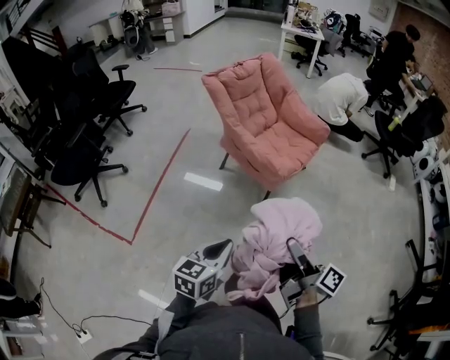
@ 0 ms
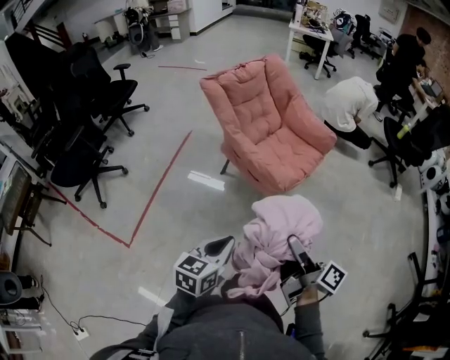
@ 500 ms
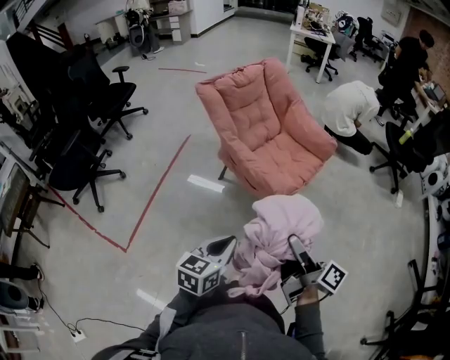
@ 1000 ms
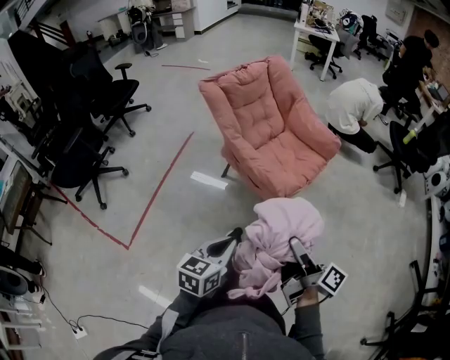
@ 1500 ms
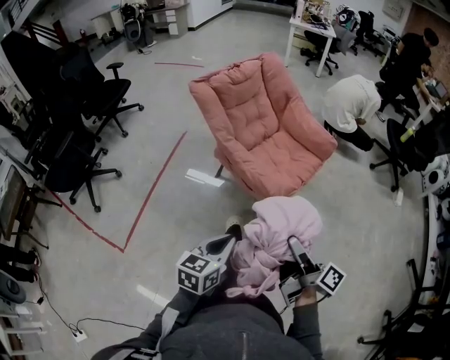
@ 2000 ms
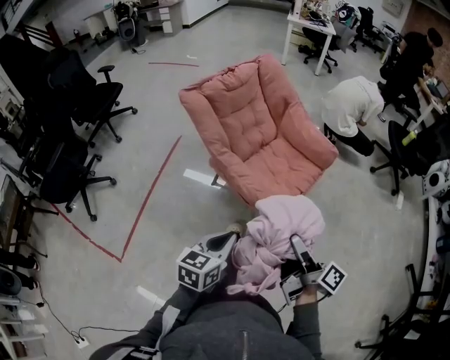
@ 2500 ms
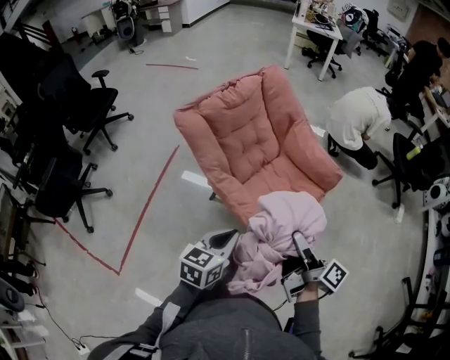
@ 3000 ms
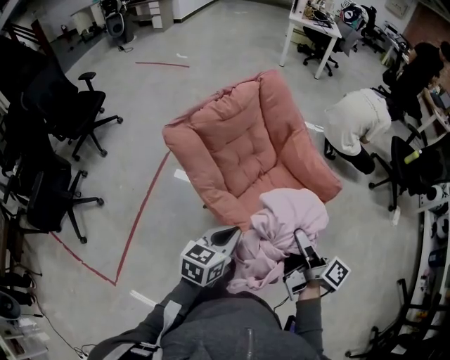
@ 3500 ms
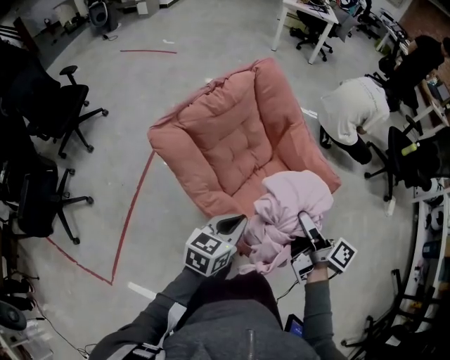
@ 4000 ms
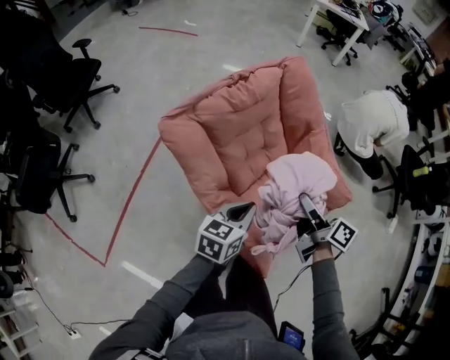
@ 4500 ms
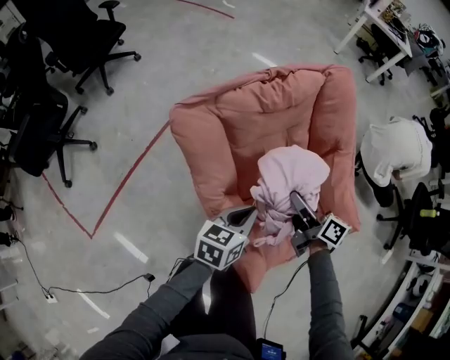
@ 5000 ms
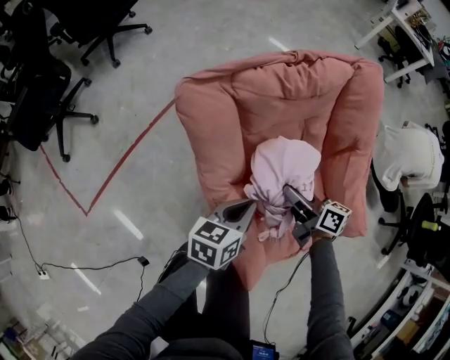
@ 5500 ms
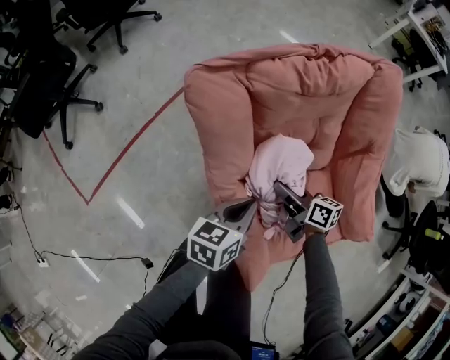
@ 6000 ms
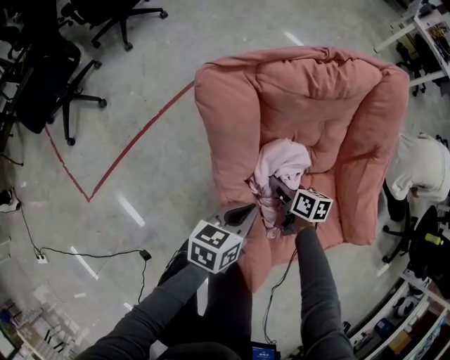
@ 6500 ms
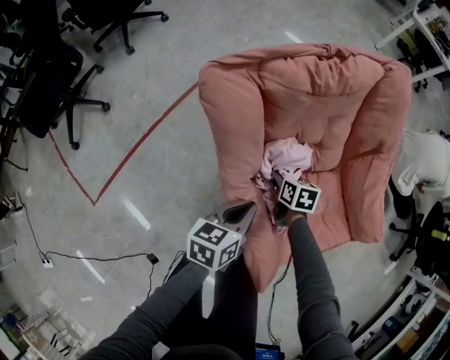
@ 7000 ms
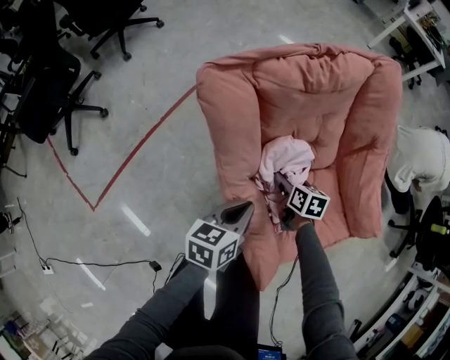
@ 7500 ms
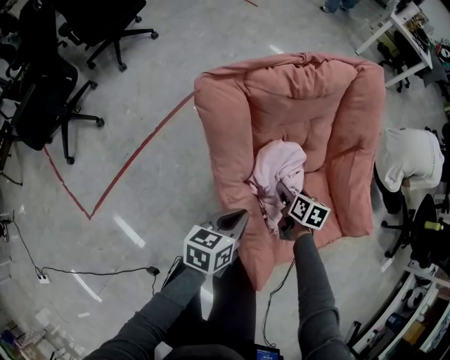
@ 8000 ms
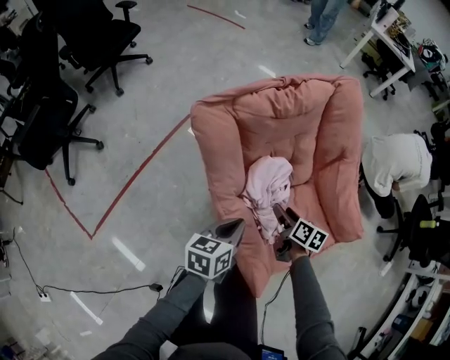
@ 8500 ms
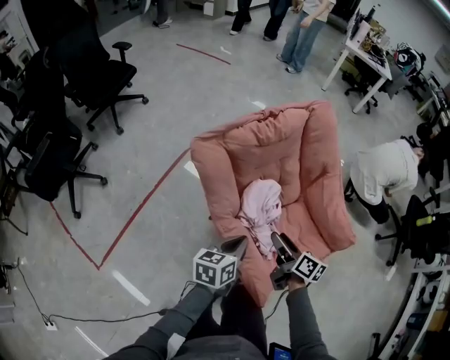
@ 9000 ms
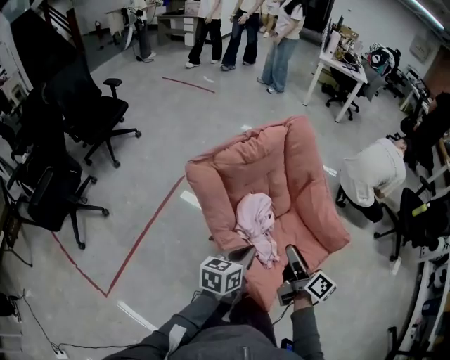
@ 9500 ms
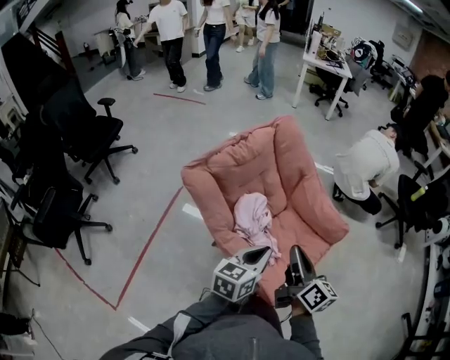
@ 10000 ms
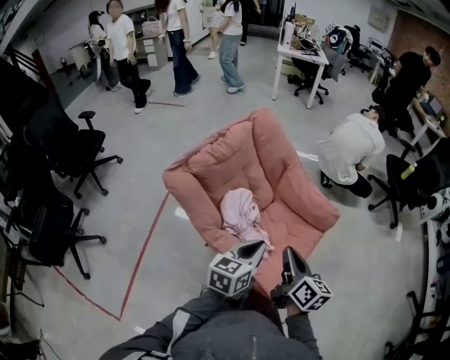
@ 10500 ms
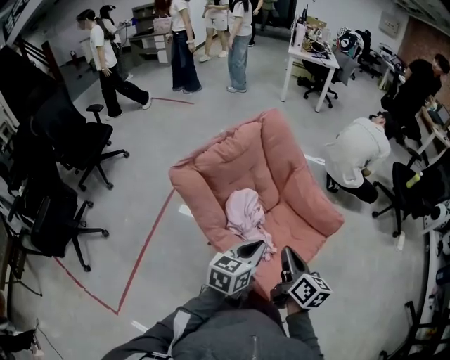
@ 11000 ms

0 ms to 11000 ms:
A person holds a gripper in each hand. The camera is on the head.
0 ms to 2000 ms: Both grippers travel together forward, approximately 20 cm.
2000 ms to 3500 ms: Both grippers travel together forward, about 35 cm.
3500 ms to 5500 ms: The right gripper moves roughly 35 cm, and swivels some 60 degrees. The left gripper moves some 25 cm, and rotates roughly 30 degrees.
5500 ms to 7500 ms: The right gripper heads downward, covering approximately 15 cm, and changes its angle by some 40 degrees. Meanwhile the left gripper moves approximately 5 cm.
7500 ms to 9000 ms: The left gripper moves upward, approximately 10 cm. Meanwhile the right gripper shifts approximately 20 cm upward and backward, and turns by roughly 40 degrees.
9000 ms to 11000 ms: The right gripper is displaced upward, backward and to the right by roughly 20 cm, turns by about 30 degrees, and closes; the left gripper is displaced to the right and upward by roughly 15 cm, and swivels roughly 30 degrees.

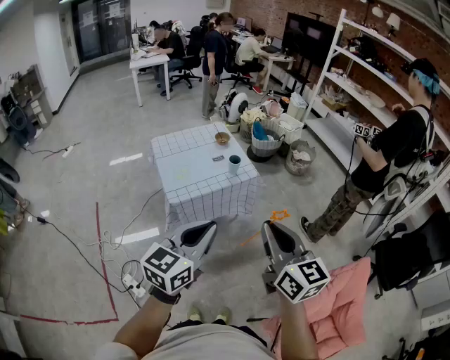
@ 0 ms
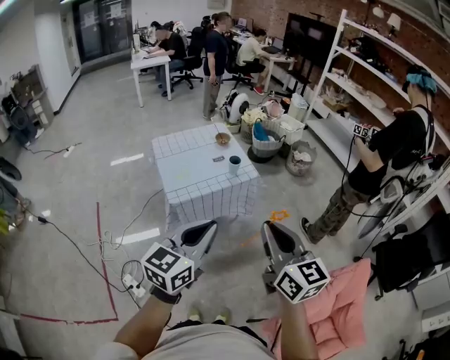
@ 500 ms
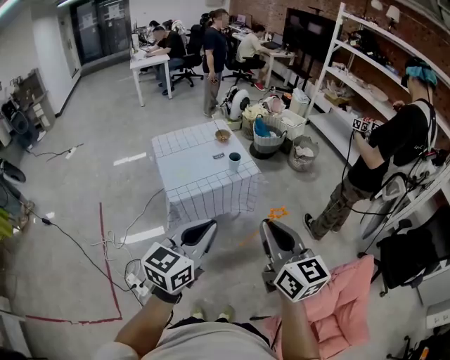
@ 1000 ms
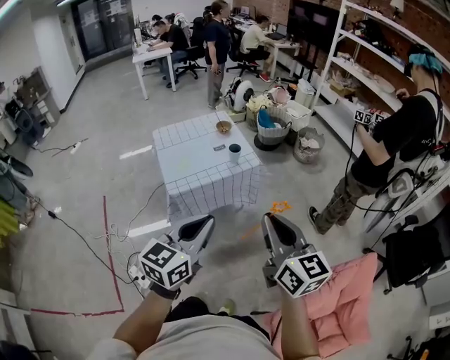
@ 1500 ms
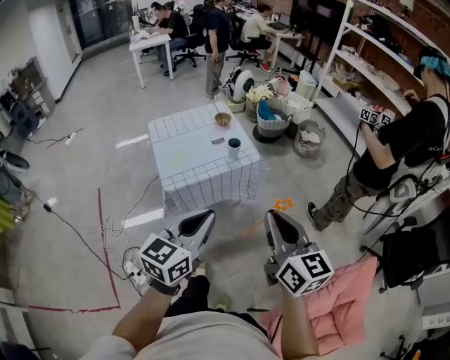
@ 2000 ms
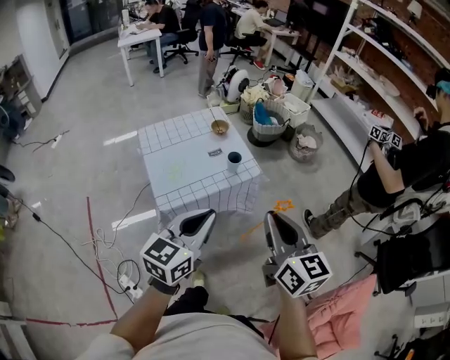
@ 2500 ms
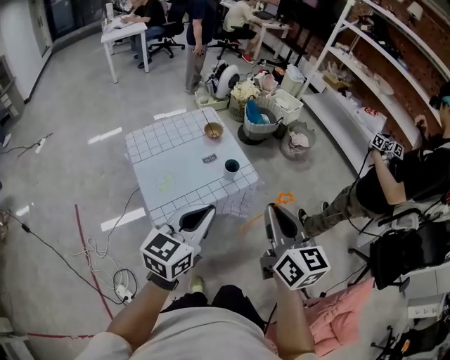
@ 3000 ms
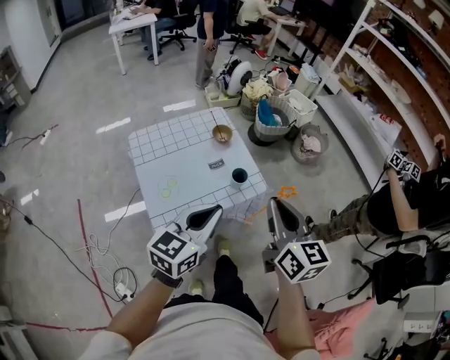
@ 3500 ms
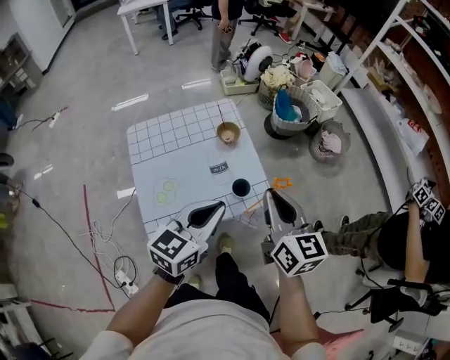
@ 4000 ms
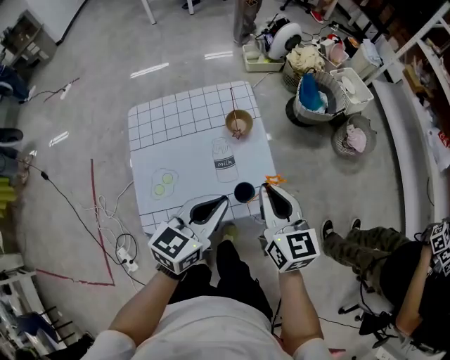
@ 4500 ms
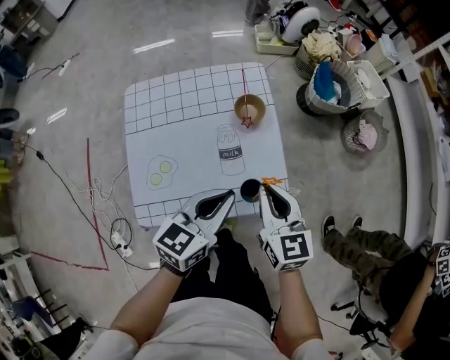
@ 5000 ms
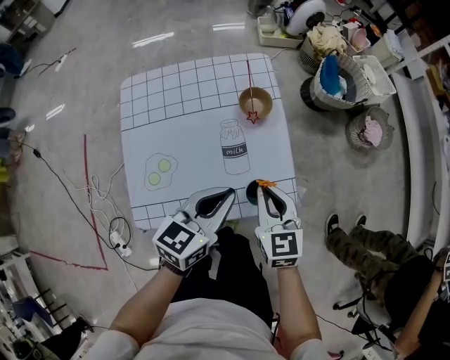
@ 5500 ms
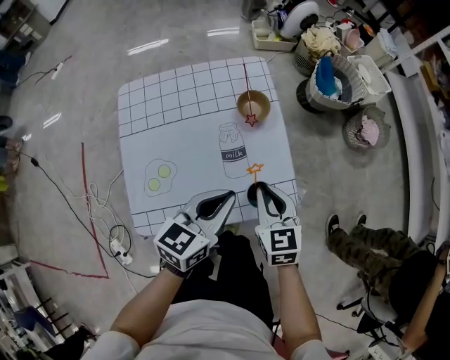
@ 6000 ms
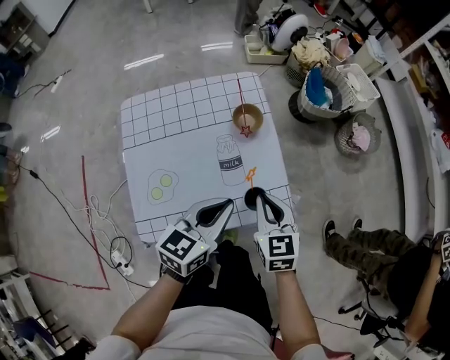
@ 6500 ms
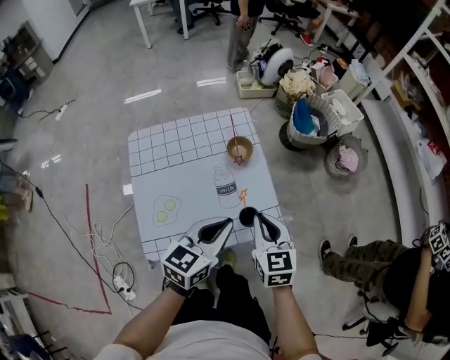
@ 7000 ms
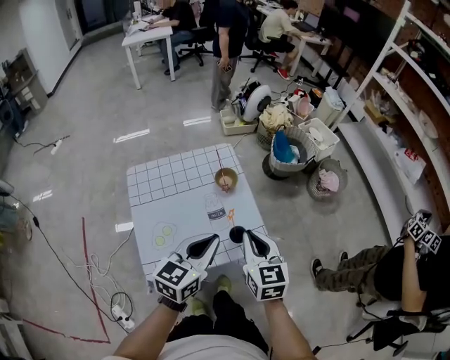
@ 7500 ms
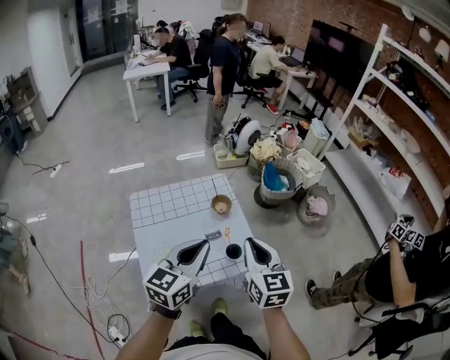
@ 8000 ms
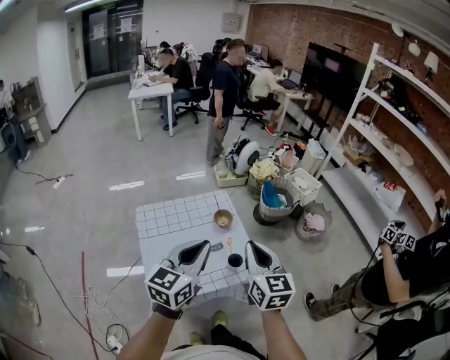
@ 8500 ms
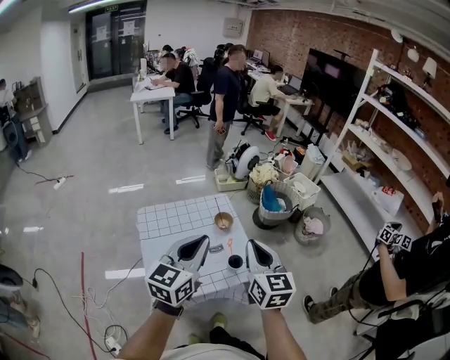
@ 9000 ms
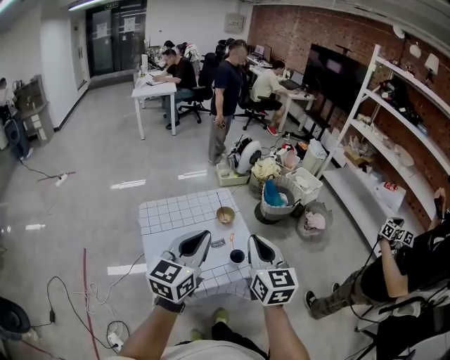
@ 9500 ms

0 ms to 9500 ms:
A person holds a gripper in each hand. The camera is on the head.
0 ms to 2000 ms: The two grippers go about 5 cm forward.
2000 ms to 4000 ms: Both grippers are carried forward, about 50 cm.
4000 ms to 5500 ms: Both grippers travel together downward and forward, some 25 cm. The right gripper changes its angle by some 30 degrees.
5500 ms to 7500 ms: Both grippers move upward, approximately 15 cm.
7500 ms to 9500 ms: The right gripper shifts roughly 20 cm upward and backward, while the left gripper travels upward by some 15 cm.

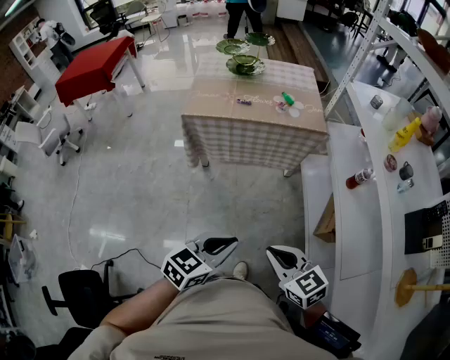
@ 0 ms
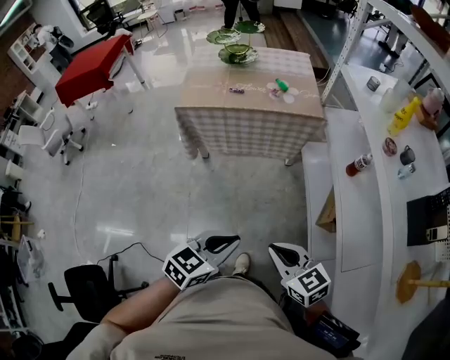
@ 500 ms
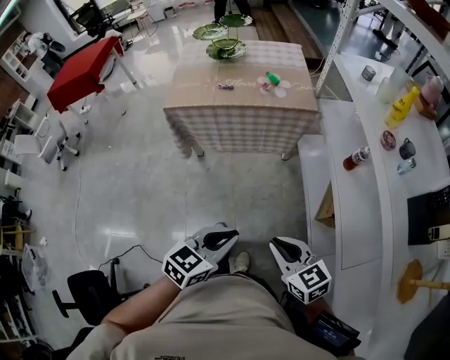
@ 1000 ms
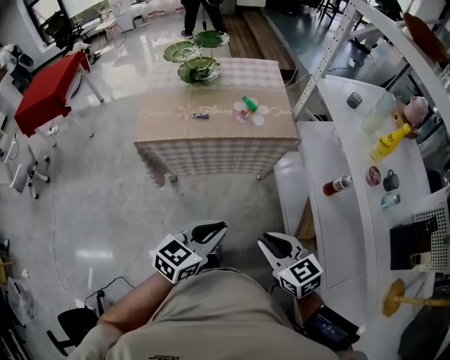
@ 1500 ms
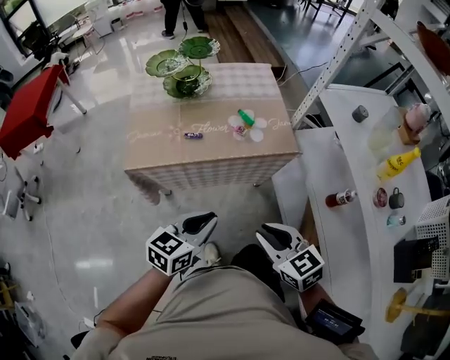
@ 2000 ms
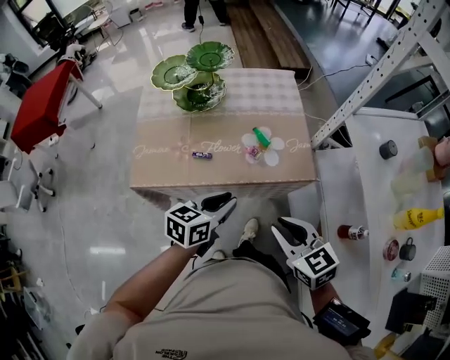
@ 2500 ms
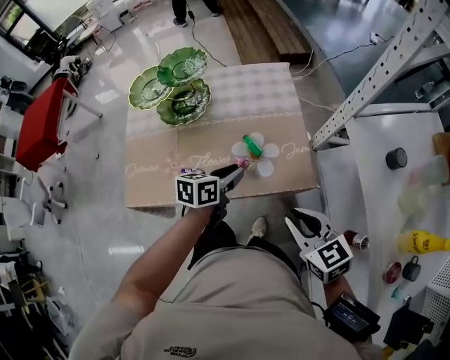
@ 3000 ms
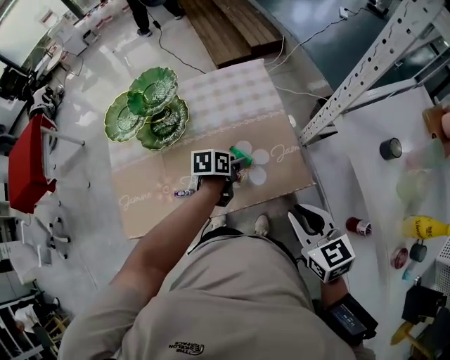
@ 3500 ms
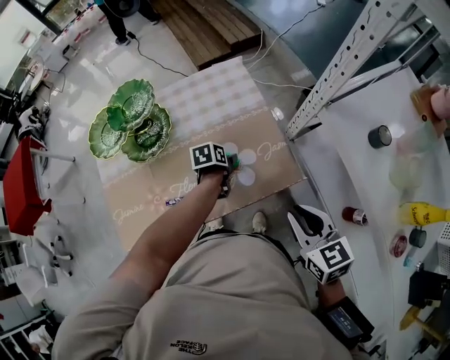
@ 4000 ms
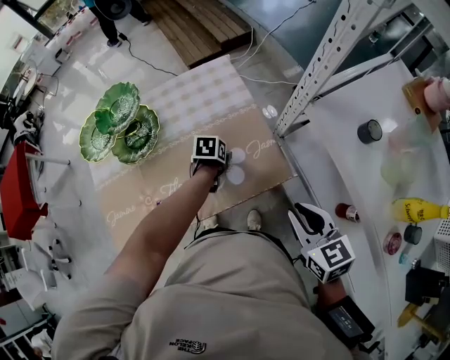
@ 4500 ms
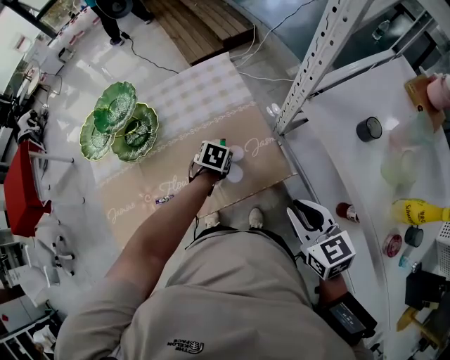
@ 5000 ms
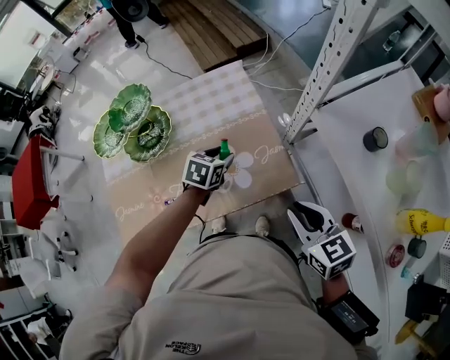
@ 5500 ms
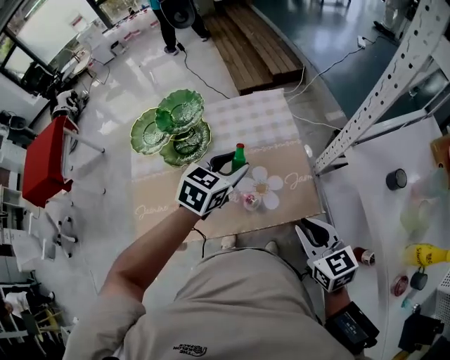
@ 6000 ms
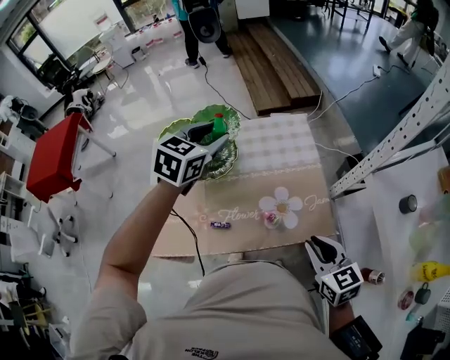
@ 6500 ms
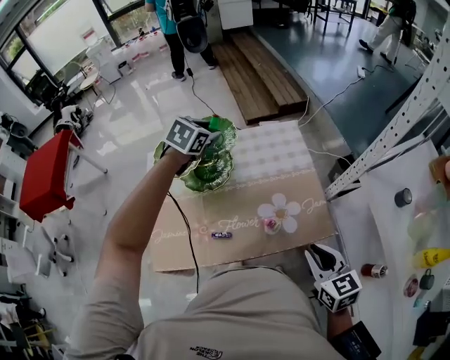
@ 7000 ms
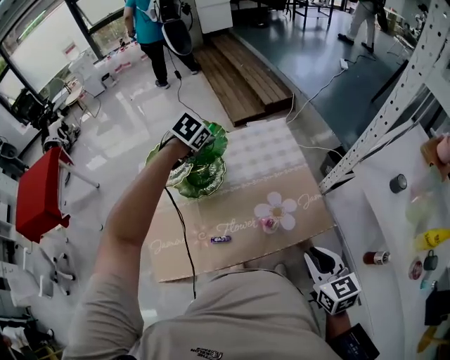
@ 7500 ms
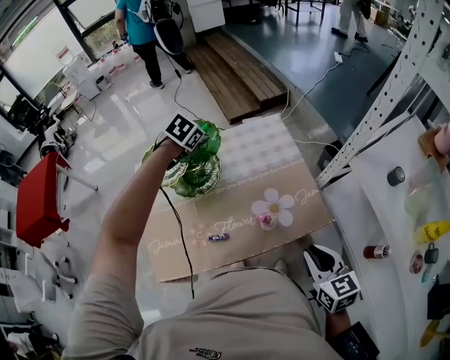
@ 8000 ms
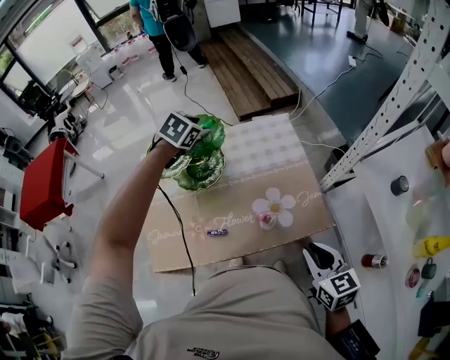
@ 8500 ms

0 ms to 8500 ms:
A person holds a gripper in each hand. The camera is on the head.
0 ms to 2000 ms: The two grippers go about 35 cm forward.
2000 ms to 4000 ms: The right gripper goes roughly 30 cm forward, and changes its angle by about 20 degrees. Meanwhile the left gripper heads forward and downward, covering about 50 cm, tilts its fingers approximately 40 degrees downward, and opens up.
4000 ms to 6500 ms: The right gripper travels to the left by roughly 5 cm, while the left gripper moves upward and to the left, some 40 cm, and twists approximately 50 degrees clockwise, seen from behind.
6500 ms to 8500 ms: The left gripper travels forward and downward by roughly 10 cm, and turns by about 20 degrees.
